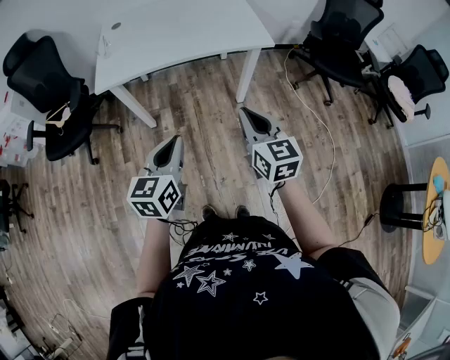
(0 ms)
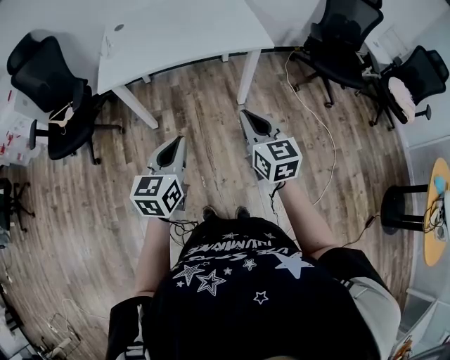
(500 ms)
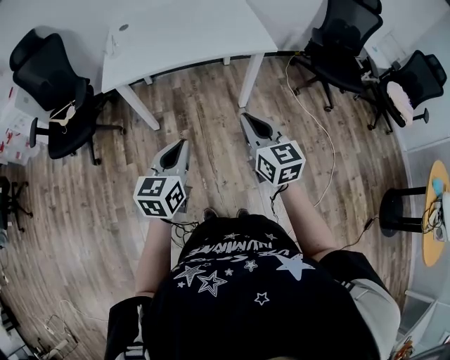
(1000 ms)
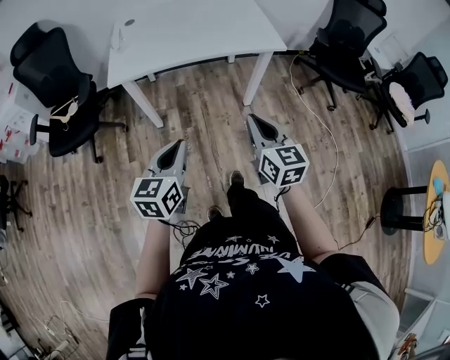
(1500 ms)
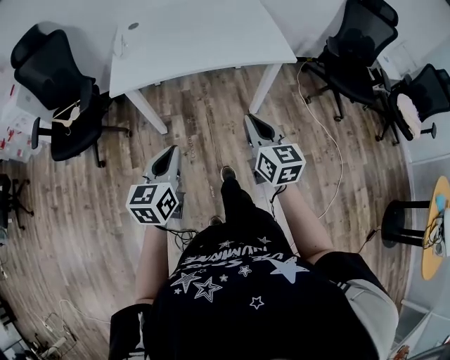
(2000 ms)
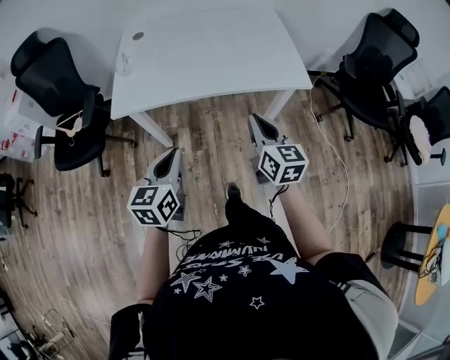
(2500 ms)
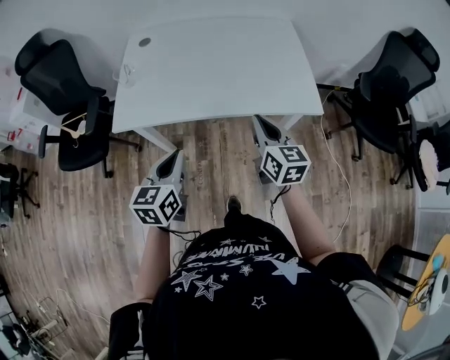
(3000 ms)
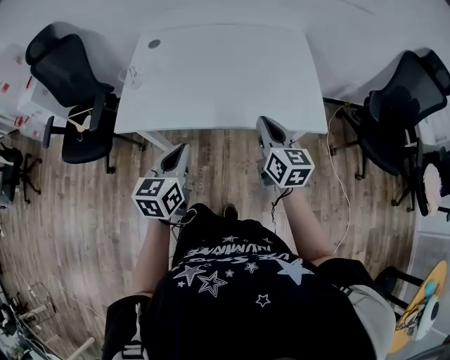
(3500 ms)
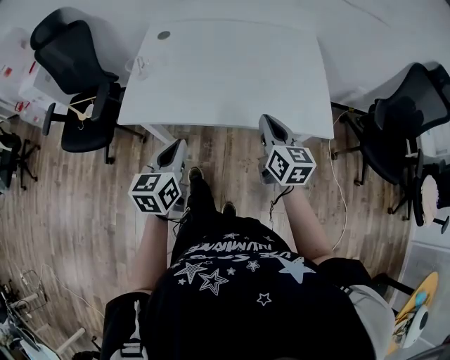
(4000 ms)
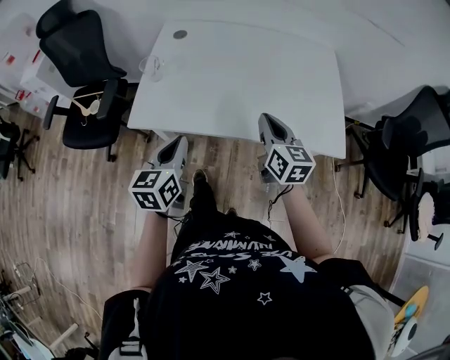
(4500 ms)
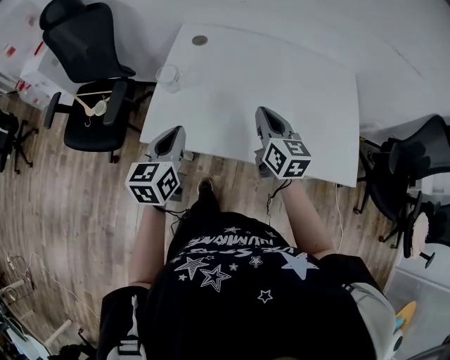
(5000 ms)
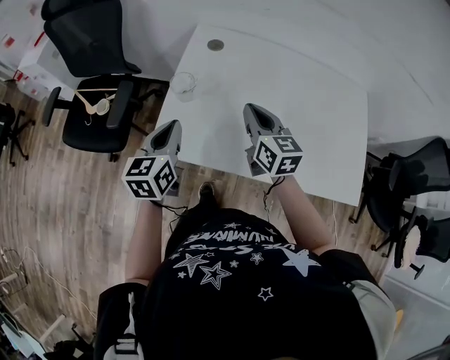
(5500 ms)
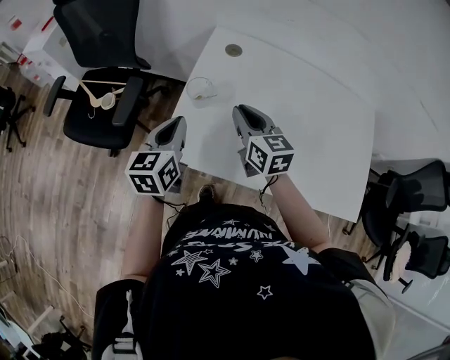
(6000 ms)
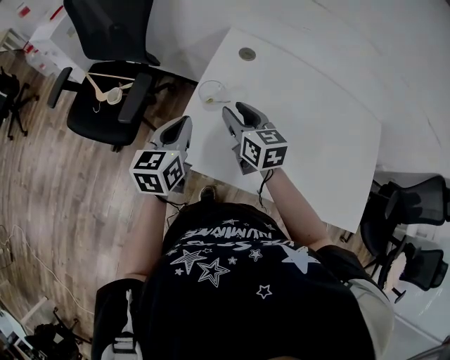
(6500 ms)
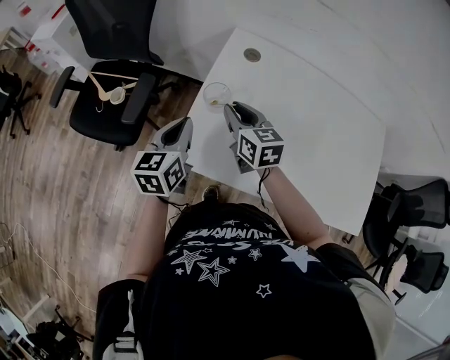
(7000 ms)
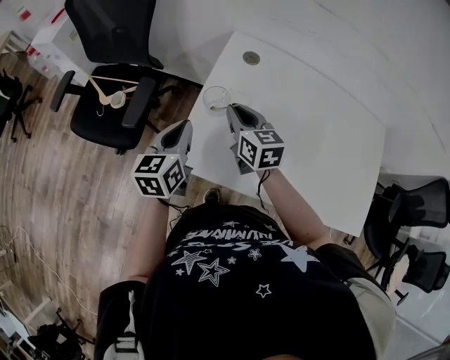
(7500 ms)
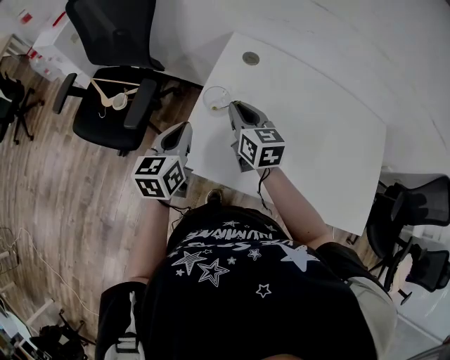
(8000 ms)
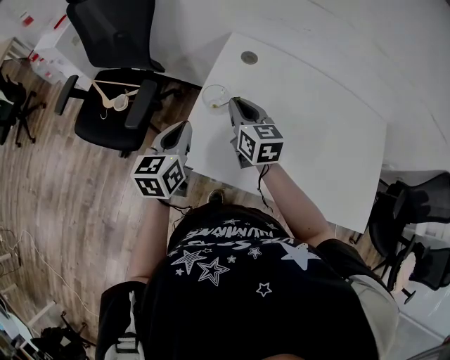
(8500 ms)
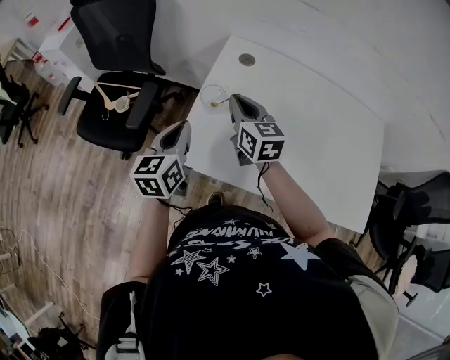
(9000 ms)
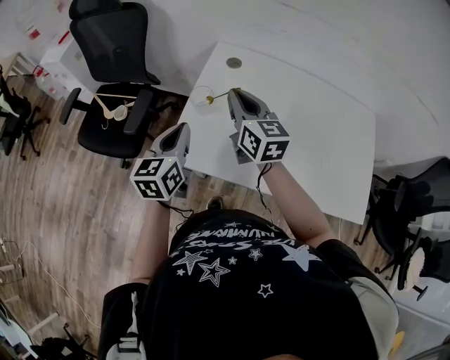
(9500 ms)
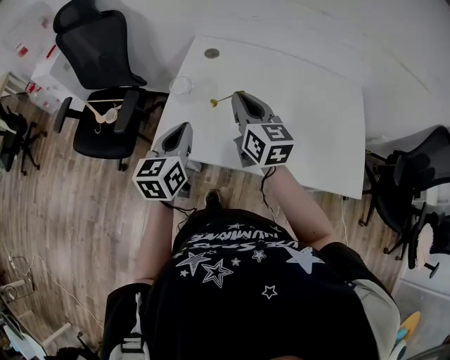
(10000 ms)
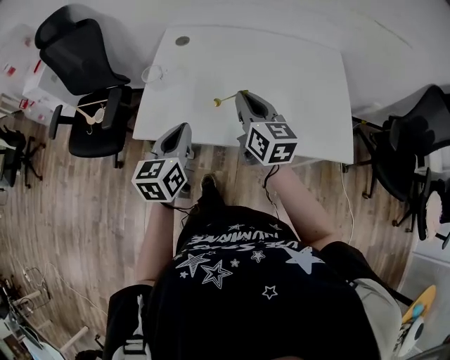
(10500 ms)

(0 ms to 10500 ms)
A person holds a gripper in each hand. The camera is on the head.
0 ms - 2000 ms: The right gripper travels to the left and forward by about 10 cm. The left gripper is displaced to the left by about 10 cm.
2000 ms - 4000 ms: The grippers both shift forward by approximately 30 cm.
4000 ms - 6500 ms: The right gripper heads to the left and forward, covering roughly 50 cm, rotates approximately 30 degrees, and opens its fingers, while the left gripper shifts about 40 cm forward and to the left.
6500 ms - 8500 ms: The right gripper closes.
8500 ms - 10500 ms: The two grippers go about 30 cm to the right and backward.

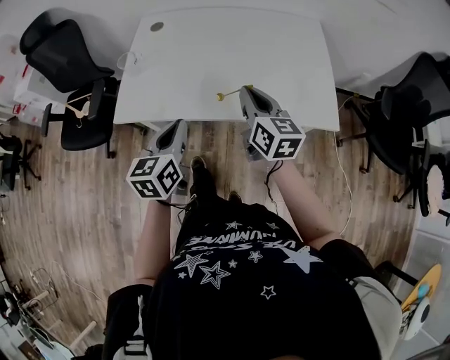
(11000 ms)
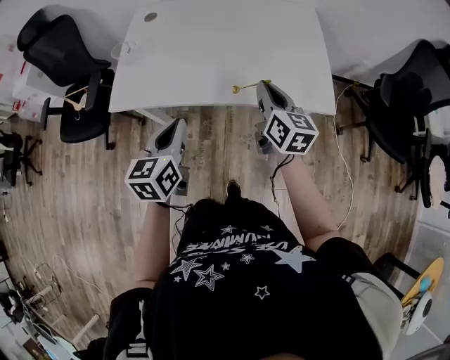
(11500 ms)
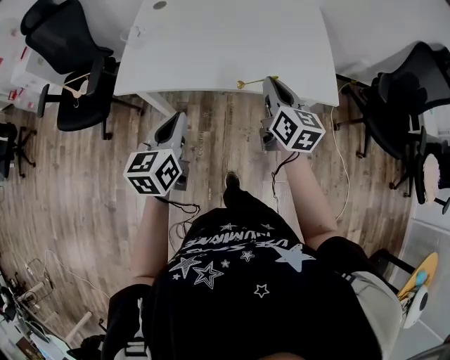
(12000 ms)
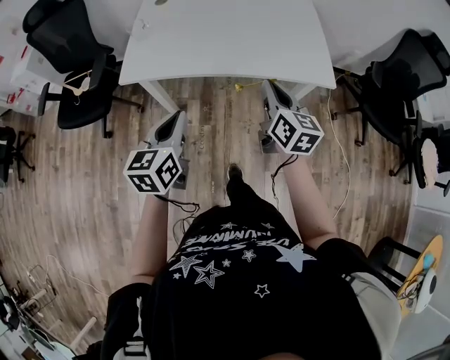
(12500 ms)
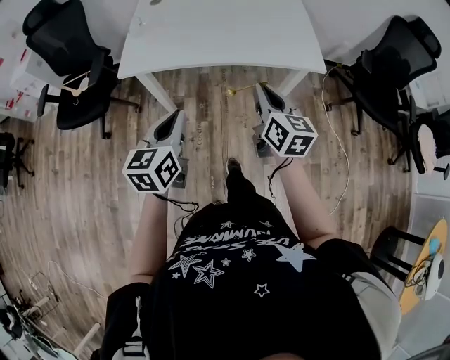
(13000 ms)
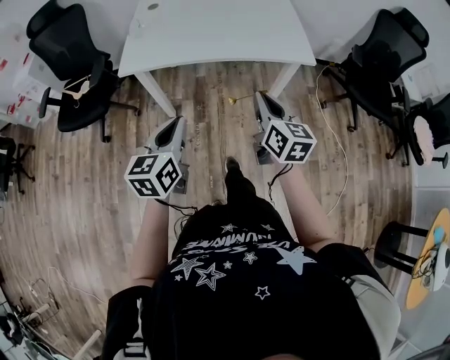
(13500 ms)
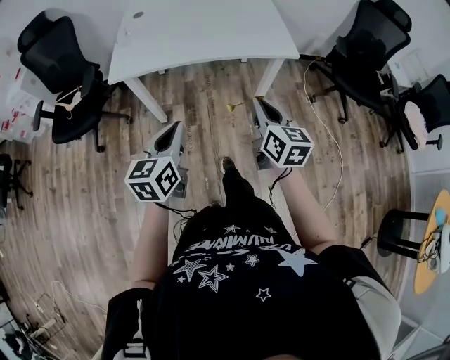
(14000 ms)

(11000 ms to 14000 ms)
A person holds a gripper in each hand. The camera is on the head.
11000 ms - 12500 ms: The two grippers go some 15 cm backward.
12500 ms - 14000 ms: Both grippers travel together backward, about 20 cm.

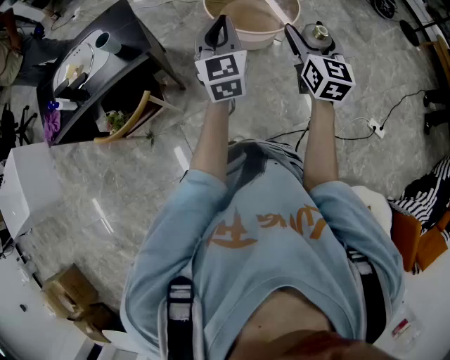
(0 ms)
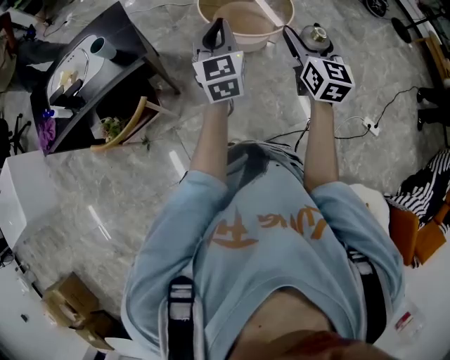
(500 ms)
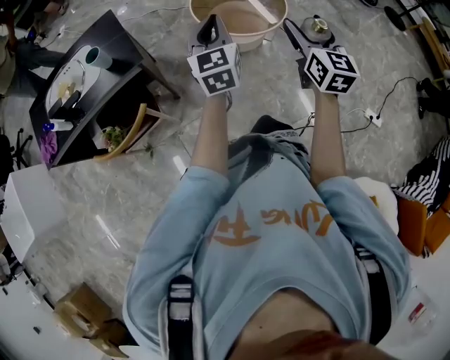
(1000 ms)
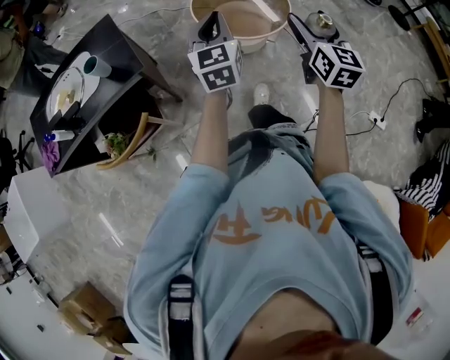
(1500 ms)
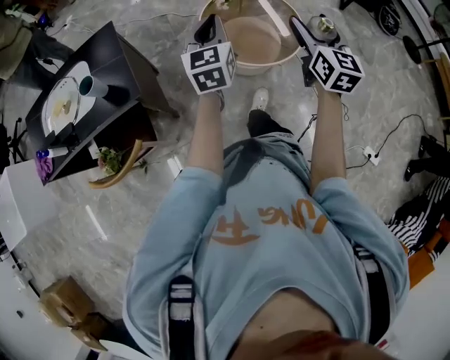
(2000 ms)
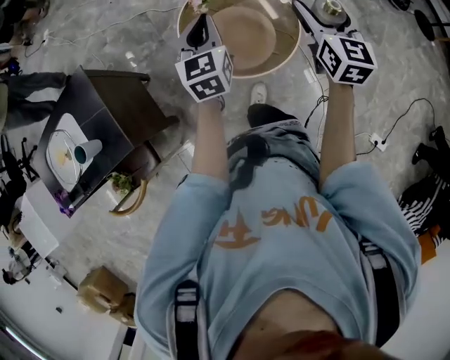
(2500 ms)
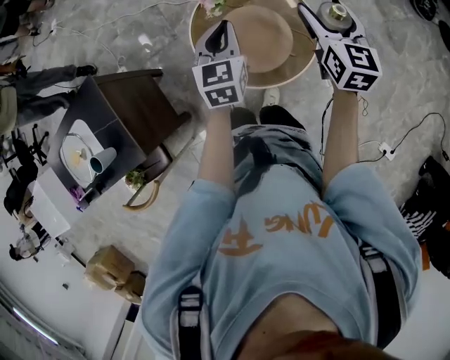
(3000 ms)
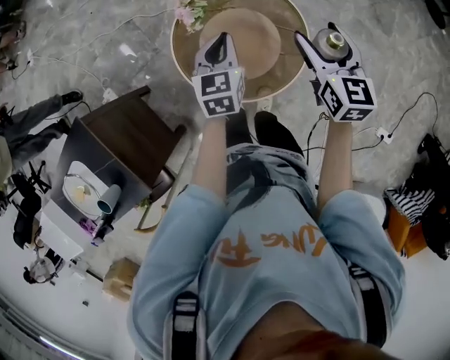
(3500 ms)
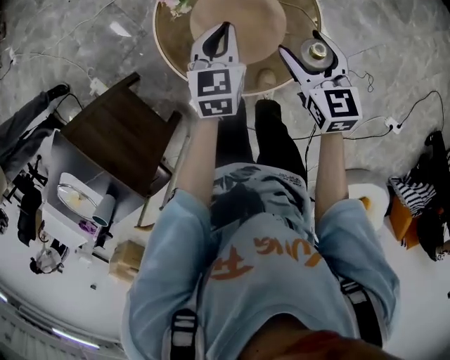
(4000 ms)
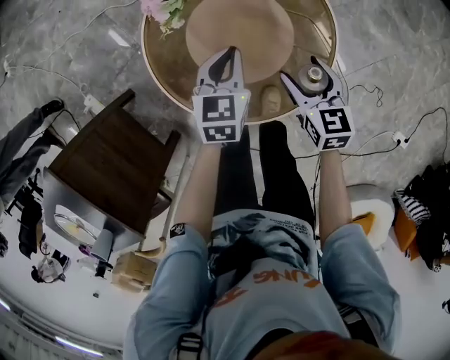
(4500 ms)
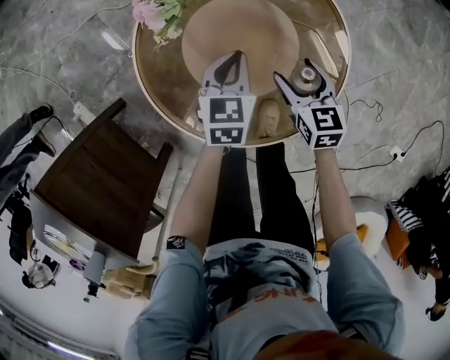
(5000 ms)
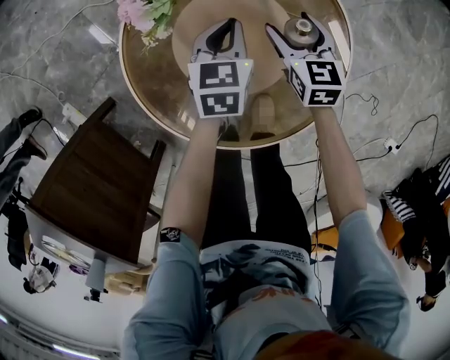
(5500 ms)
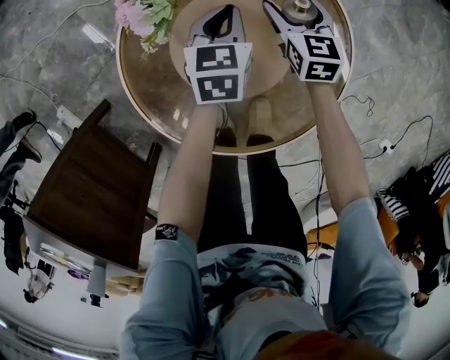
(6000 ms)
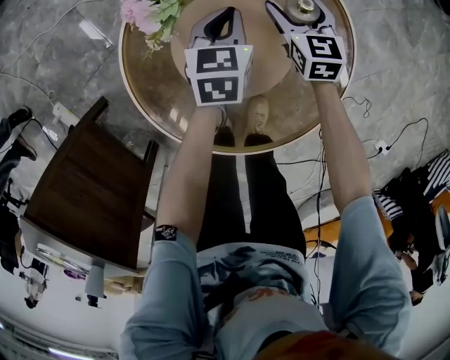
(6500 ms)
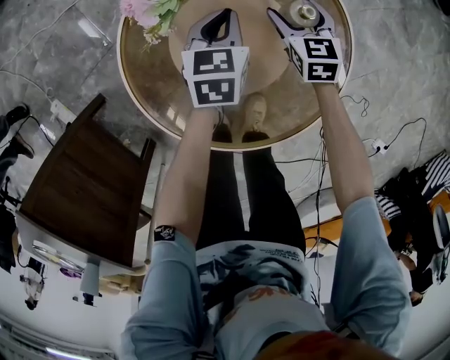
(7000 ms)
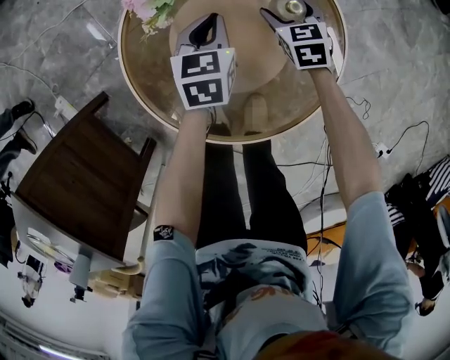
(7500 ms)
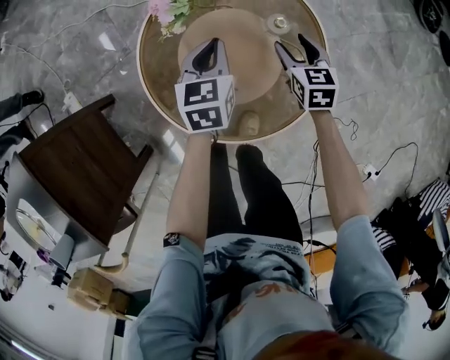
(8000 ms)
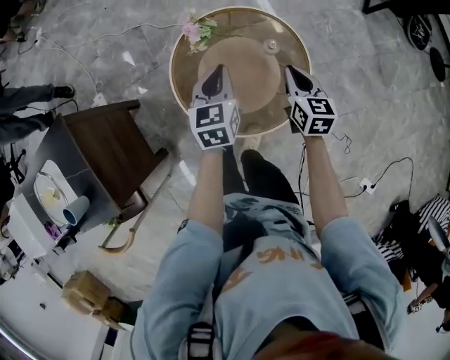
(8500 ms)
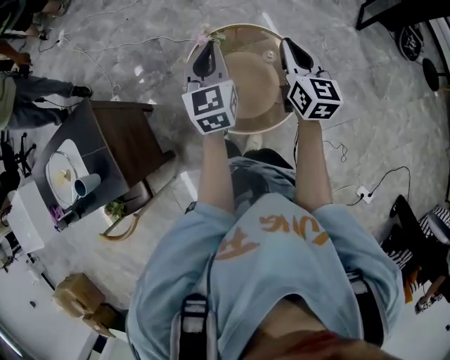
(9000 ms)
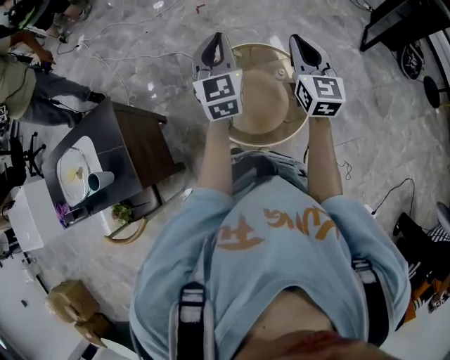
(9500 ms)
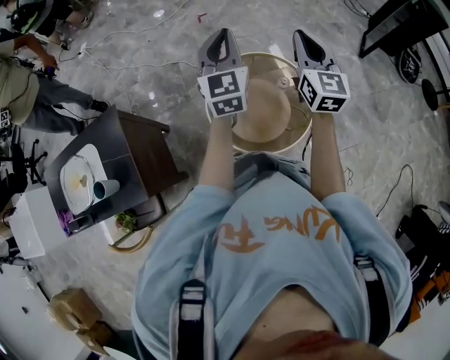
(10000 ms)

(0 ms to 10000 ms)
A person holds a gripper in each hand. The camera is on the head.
0 ms - 2000 ms: The grippers both shift forward by roughly 20 cm.
2000 ms - 4000 ms: The left gripper travels forward, downward and to the right by approximately 35 cm, and swivels about 30 degrees, while the right gripper is displaced downward and forward by approximately 30 cm, and changes its angle by some 30 degrees.
4000 ms - 6000 ms: Both grippers move downward and forward, roughly 25 cm.
6000 ms - 8000 ms: The two grippers go roughly 10 cm backward and upward.
8000 ms - 10000 ms: Both grippers travel together upward, approximately 40 cm. The left gripper tilts its fingers some 30 degrees upward; the right gripper angles its fingers upward, by about 40 degrees, and closes up.

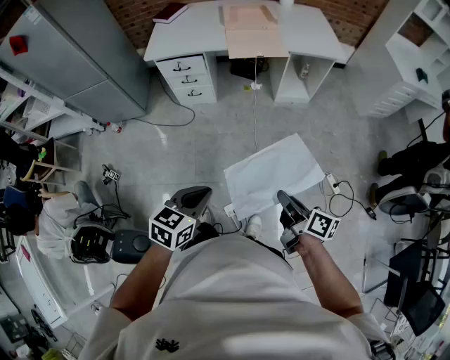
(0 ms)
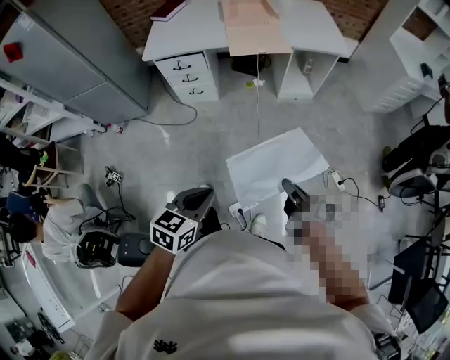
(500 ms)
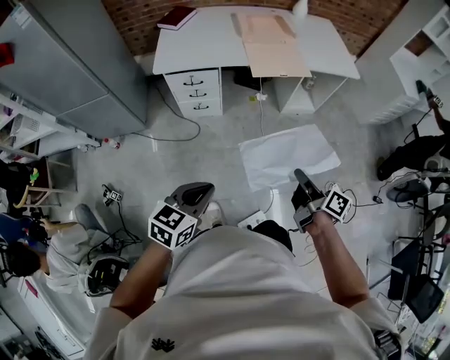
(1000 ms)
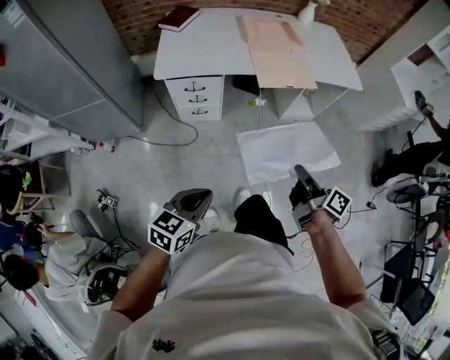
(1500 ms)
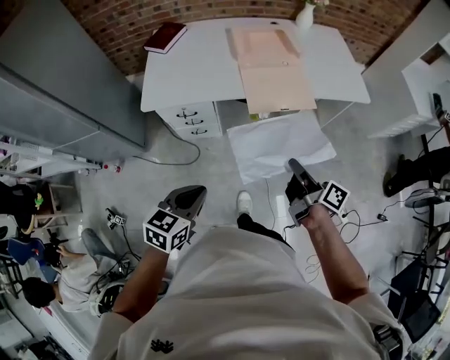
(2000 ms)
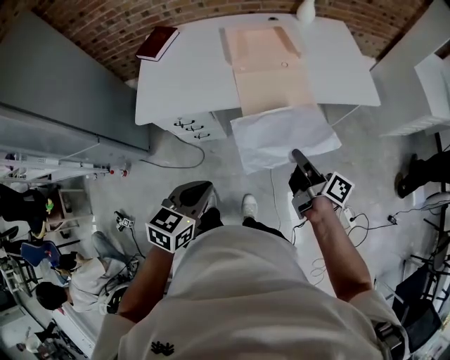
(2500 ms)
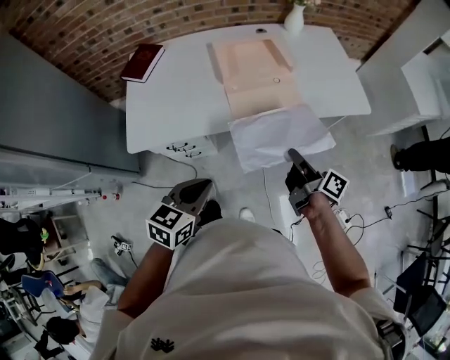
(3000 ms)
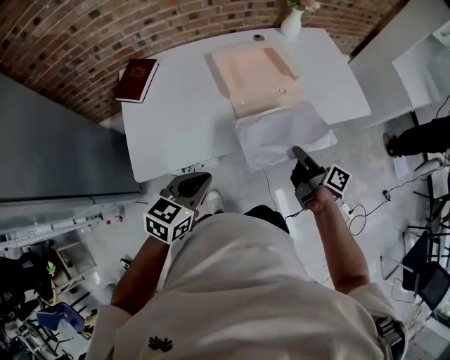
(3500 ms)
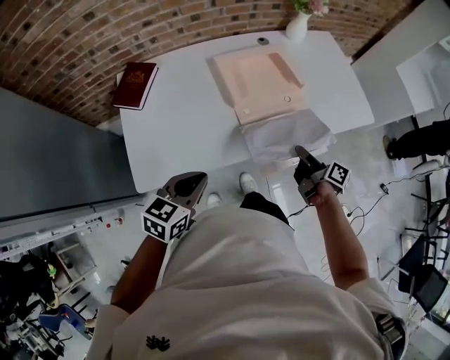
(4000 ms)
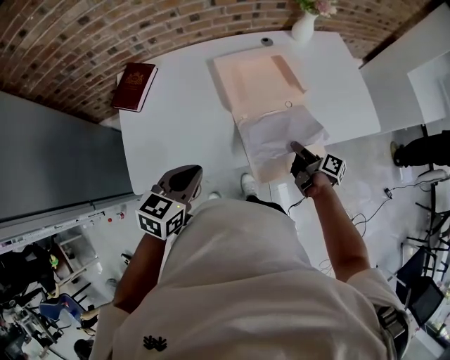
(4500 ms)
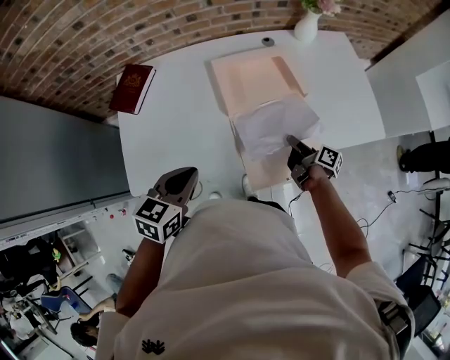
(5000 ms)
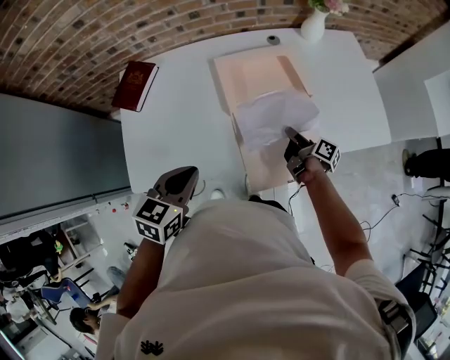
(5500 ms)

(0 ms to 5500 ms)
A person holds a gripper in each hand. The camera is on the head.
0 ms - 2000 ms: The two grippers travel together, forward and to the left, some 50 cm.
2000 ms - 3500 ms: The grippers both shift forward by about 30 cm.
3500 ms - 5500 ms: The right gripper is displaced forward and downward by about 25 cm. Meanwhile the left gripper travels forward by some 15 cm.
